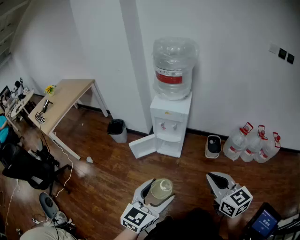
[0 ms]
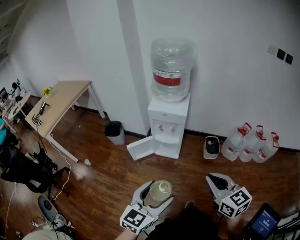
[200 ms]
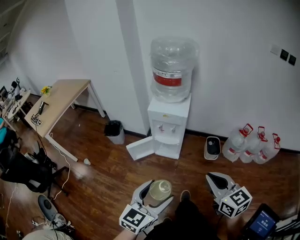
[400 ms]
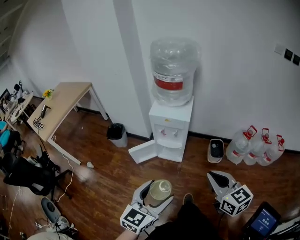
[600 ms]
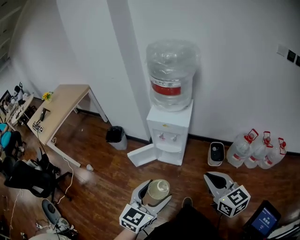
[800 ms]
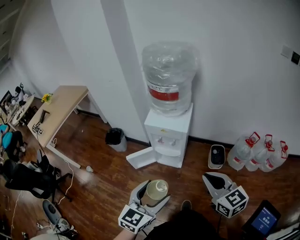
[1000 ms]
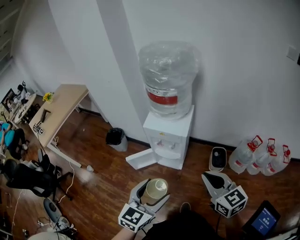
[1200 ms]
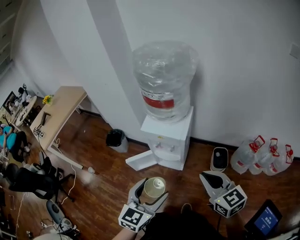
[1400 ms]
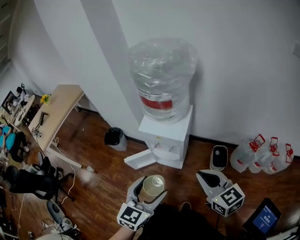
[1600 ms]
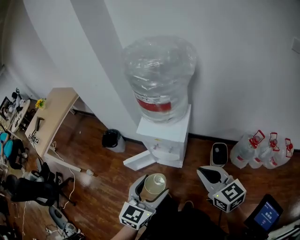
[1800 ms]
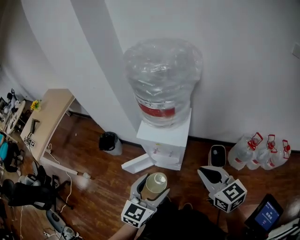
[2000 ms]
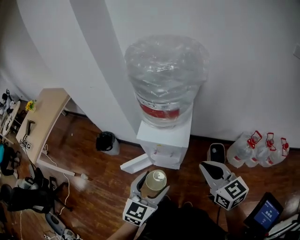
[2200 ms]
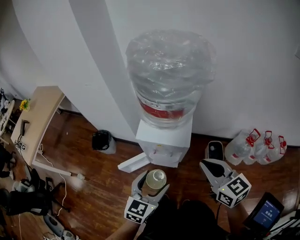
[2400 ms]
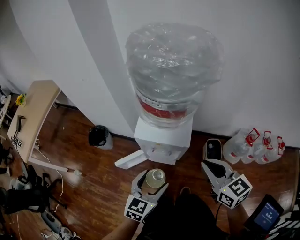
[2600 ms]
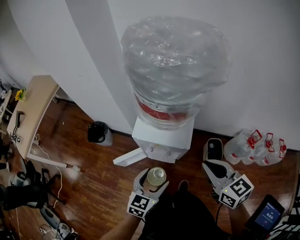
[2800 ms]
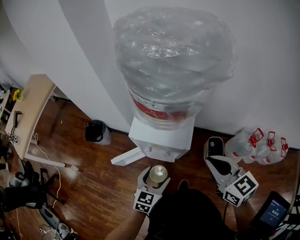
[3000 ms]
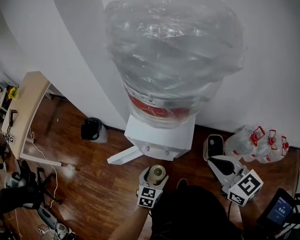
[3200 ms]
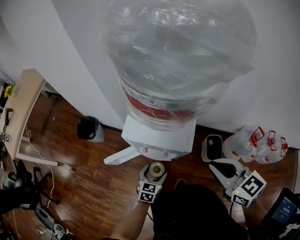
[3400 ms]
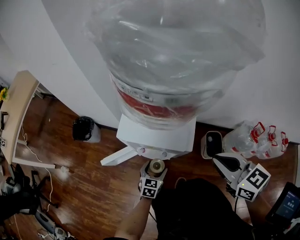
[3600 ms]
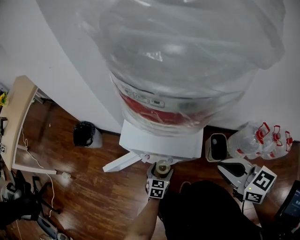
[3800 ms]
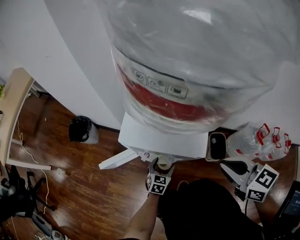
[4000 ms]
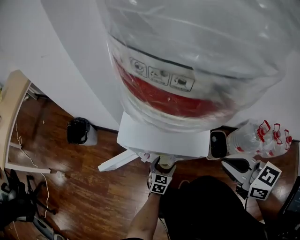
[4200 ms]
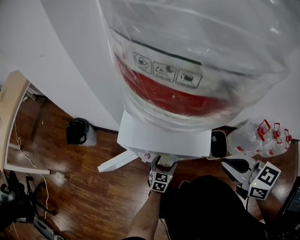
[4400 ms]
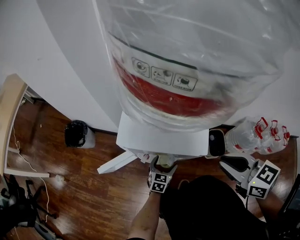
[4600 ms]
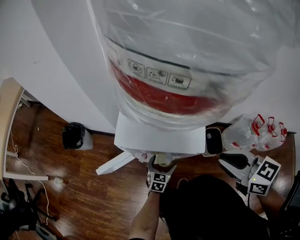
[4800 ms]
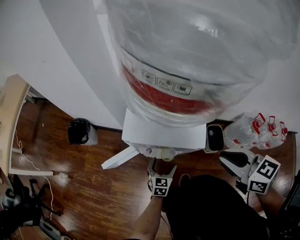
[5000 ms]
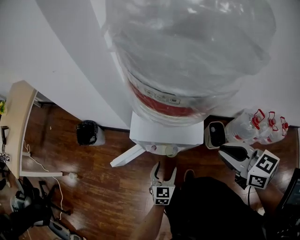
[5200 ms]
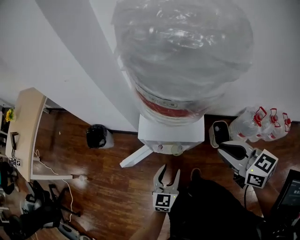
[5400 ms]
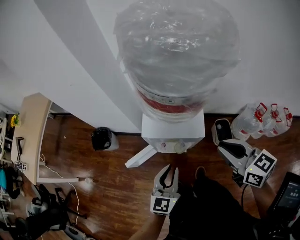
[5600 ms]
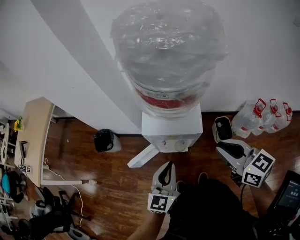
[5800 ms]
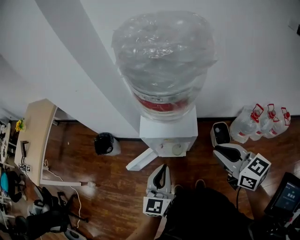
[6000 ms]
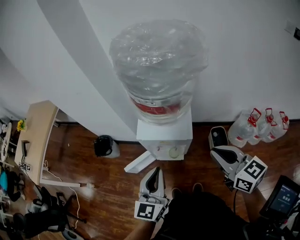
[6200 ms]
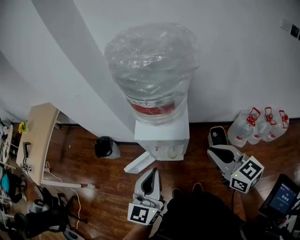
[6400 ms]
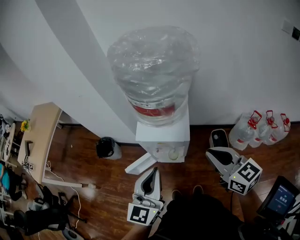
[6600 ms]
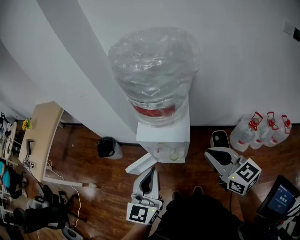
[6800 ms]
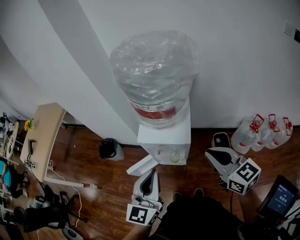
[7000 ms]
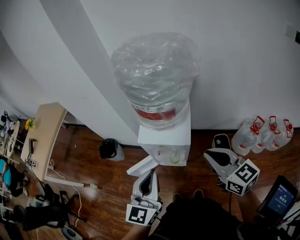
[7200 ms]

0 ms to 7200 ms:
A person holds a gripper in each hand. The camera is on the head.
0 ms to 1400 ms: Both grippers travel together forward, about 25 cm.
1400 ms to 2800 ms: The left gripper shifts some 25 cm forward and downward, while the right gripper goes about 15 cm forward.
2800 ms to 4400 ms: The left gripper travels downward by some 40 cm. The right gripper travels downward and forward by roughly 15 cm.
4400 ms to 5800 ms: The right gripper heads upward and backward, covering roughly 20 cm; the left gripper shifts some 40 cm upward, turns by roughly 30 degrees, and closes up.
5800 ms to 7200 ms: The left gripper goes about 15 cm upward.

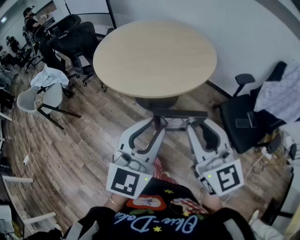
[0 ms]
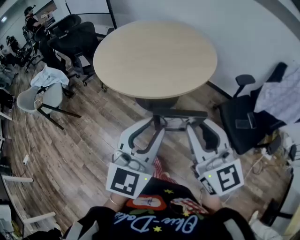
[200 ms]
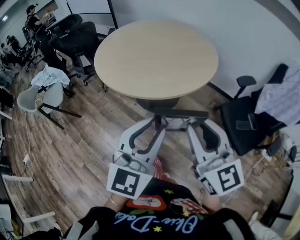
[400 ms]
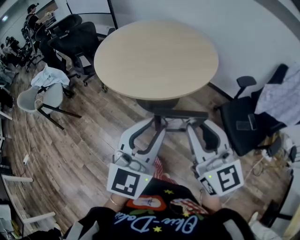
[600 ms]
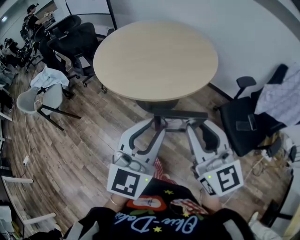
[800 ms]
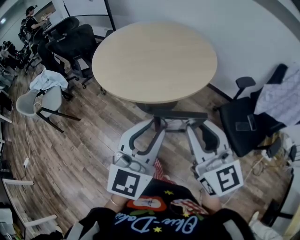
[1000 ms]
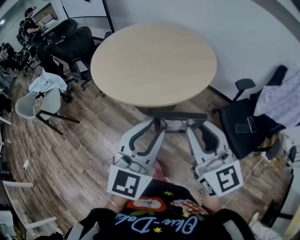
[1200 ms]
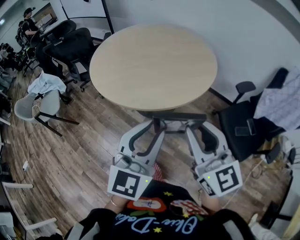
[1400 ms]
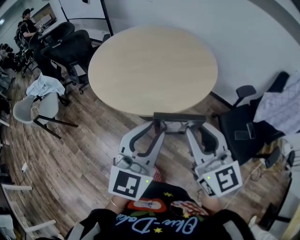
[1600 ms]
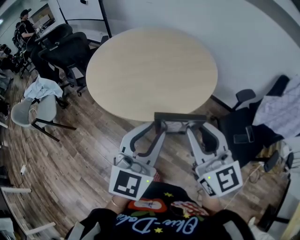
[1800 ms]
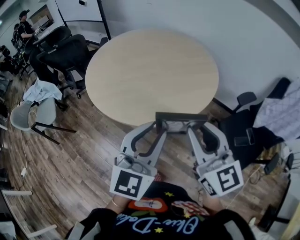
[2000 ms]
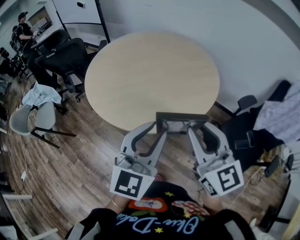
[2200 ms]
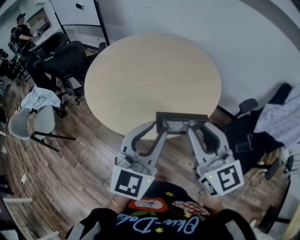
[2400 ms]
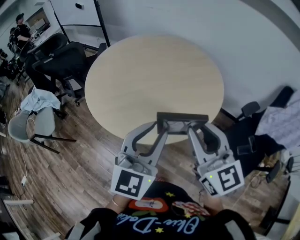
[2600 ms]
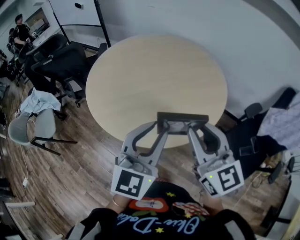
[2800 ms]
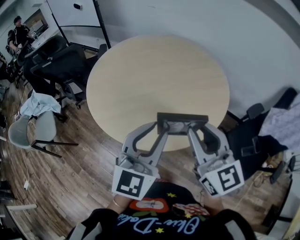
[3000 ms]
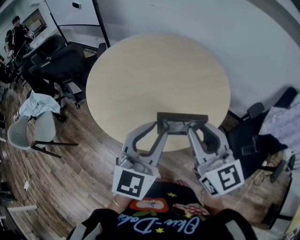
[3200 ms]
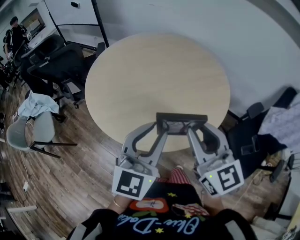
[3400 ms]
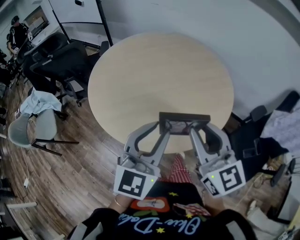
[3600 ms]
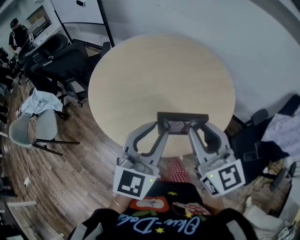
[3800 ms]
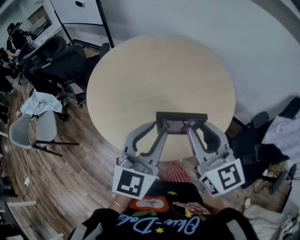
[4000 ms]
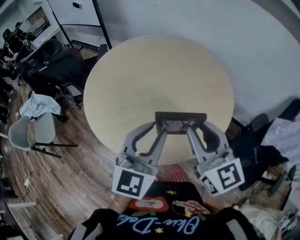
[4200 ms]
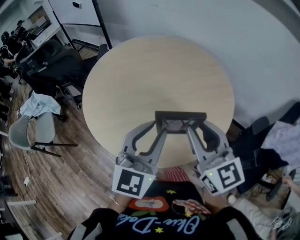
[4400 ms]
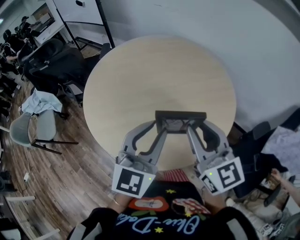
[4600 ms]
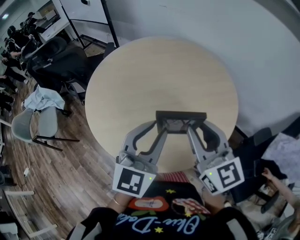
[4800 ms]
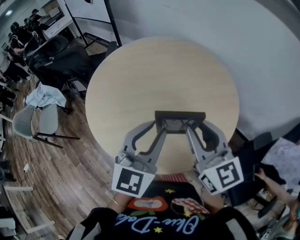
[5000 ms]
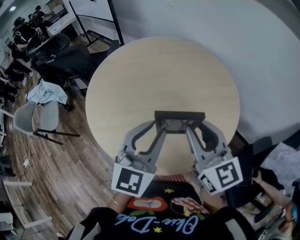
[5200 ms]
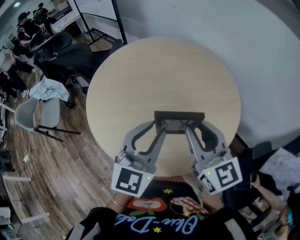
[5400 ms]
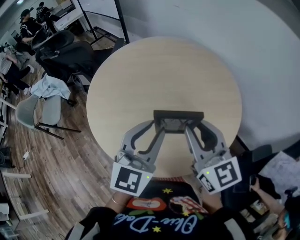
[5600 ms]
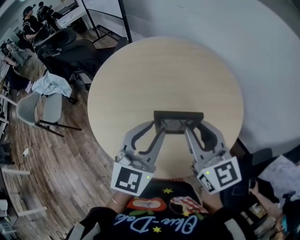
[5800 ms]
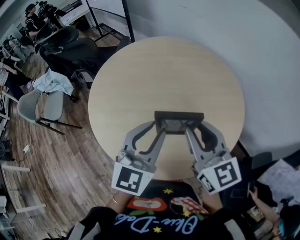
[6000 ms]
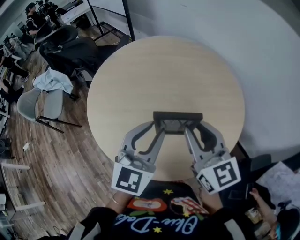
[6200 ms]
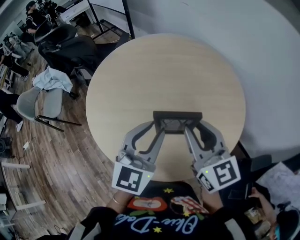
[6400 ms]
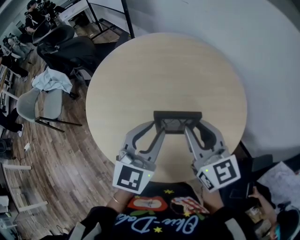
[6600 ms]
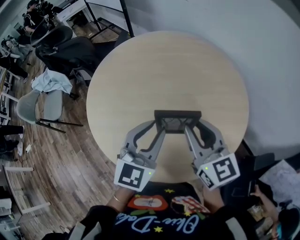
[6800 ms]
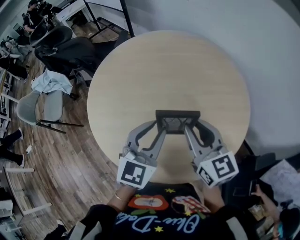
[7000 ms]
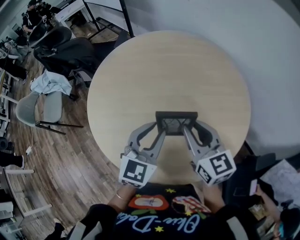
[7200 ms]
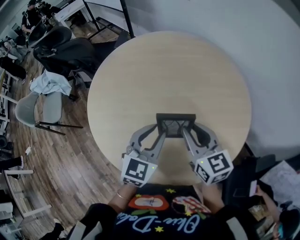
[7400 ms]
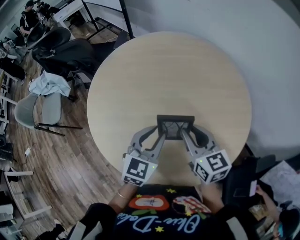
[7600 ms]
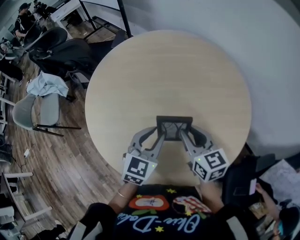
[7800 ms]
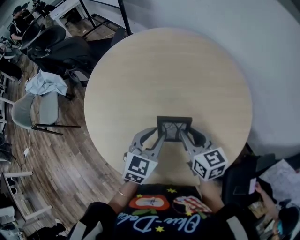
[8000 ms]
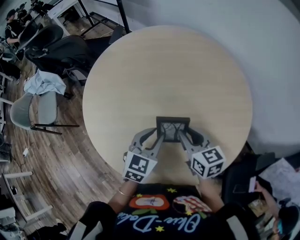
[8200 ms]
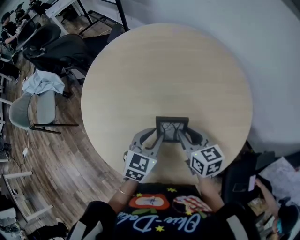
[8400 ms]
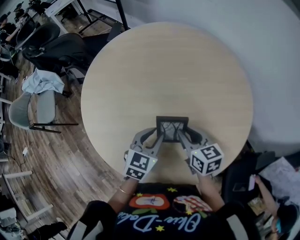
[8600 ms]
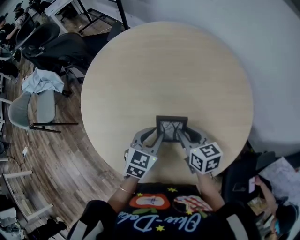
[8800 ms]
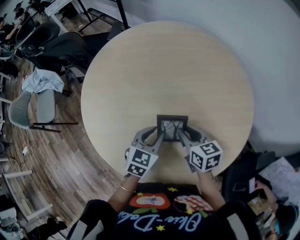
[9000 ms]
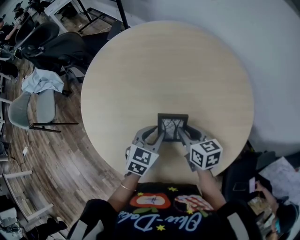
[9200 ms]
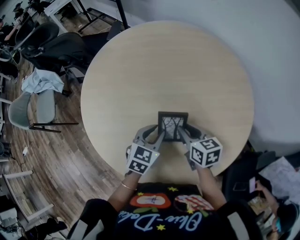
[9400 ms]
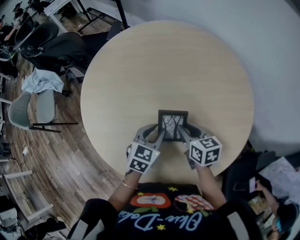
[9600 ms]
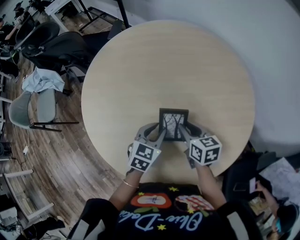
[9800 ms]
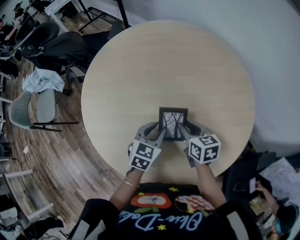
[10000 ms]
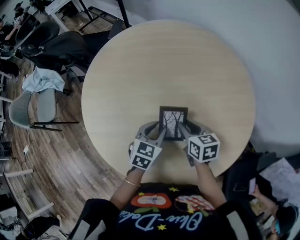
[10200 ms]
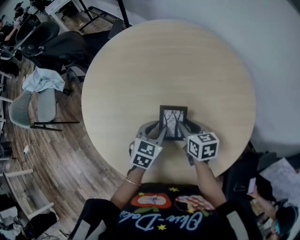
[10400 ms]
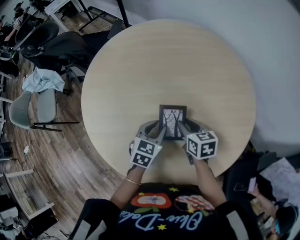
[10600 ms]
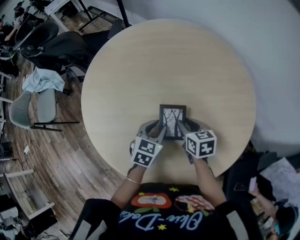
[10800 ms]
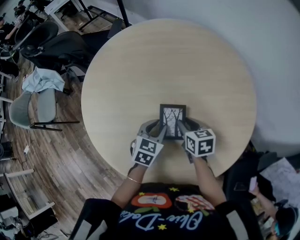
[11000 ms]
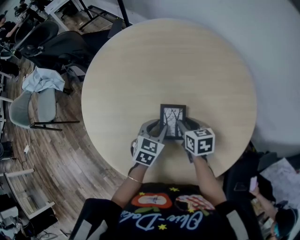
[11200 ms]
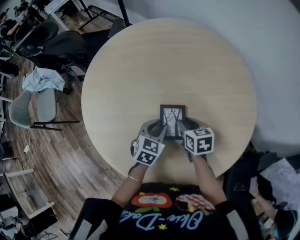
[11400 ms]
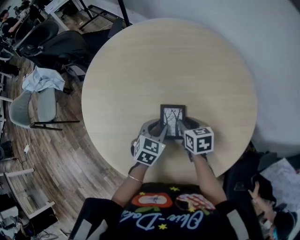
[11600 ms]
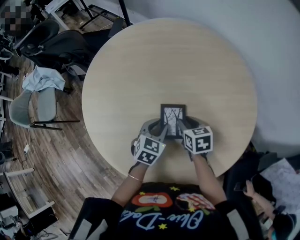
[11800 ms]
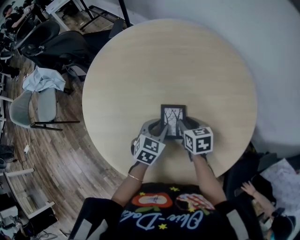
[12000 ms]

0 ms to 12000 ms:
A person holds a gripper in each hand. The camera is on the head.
0 ms to 1600 ms: The grippers both shift forward by approximately 10 cm.
1600 ms to 3000 ms: Both grippers move forward and to the left, about 20 cm.
3000 ms to 4400 ms: The grippers both shift forward by roughly 10 cm.
4400 ms to 6000 ms: Both grippers move forward, approximately 5 cm.
6000 ms to 7600 ms: The grippers both shift downward and forward by approximately 15 cm.
7600 ms to 9000 ms: The grippers both shift downward by roughly 10 cm.
9000 ms to 10400 ms: The grippers move only a little.
10400 ms to 12000 ms: There are only small adjustments of the grippers.

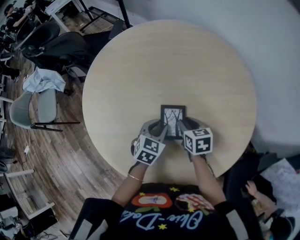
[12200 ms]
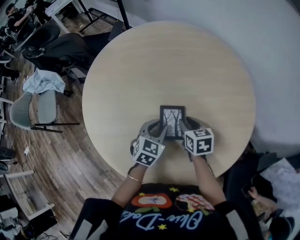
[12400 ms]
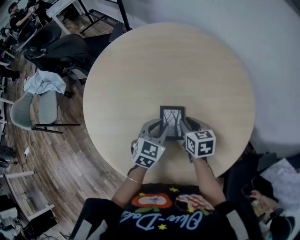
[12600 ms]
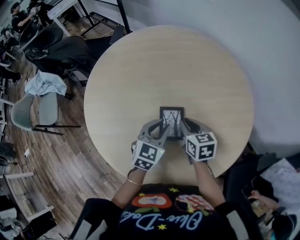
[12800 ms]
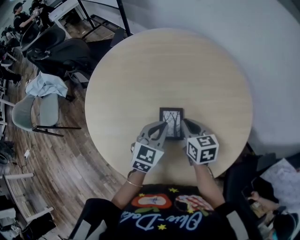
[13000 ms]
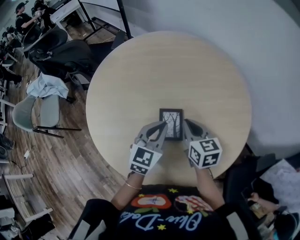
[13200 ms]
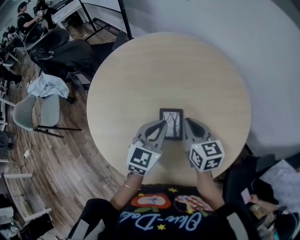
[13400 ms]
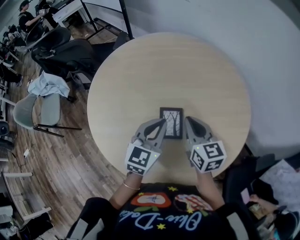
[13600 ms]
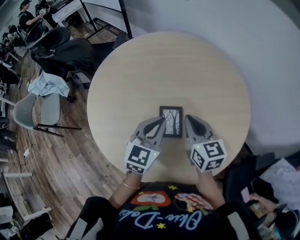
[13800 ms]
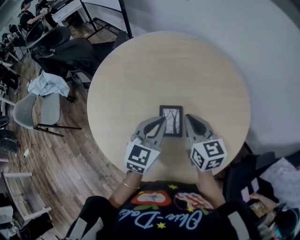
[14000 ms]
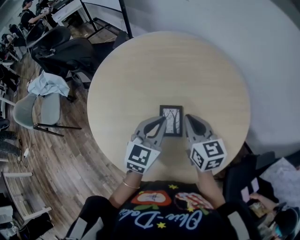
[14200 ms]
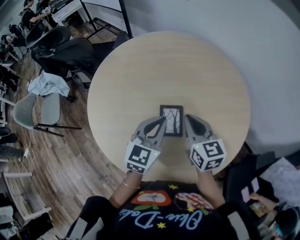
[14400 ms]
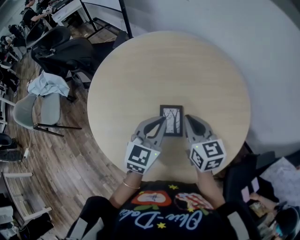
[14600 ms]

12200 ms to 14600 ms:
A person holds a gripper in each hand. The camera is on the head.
12200 ms to 13400 ms: The two grippers go about 15 cm upward. The left gripper swivels some 20 degrees, and closes its fingers. Meanwhile the right gripper rotates some 30 degrees, and closes up.
13400 ms to 14600 ms: The grippers make only small movements.

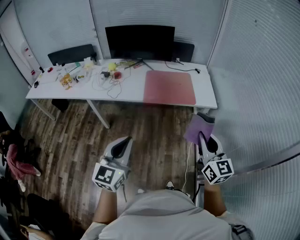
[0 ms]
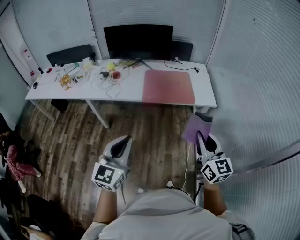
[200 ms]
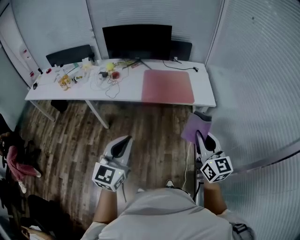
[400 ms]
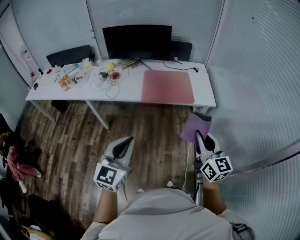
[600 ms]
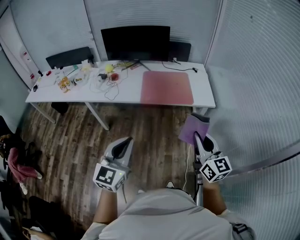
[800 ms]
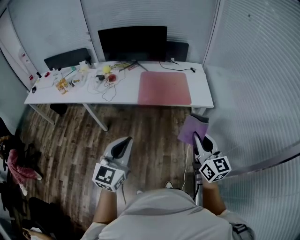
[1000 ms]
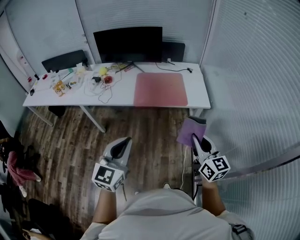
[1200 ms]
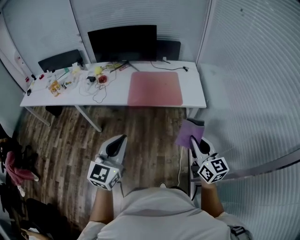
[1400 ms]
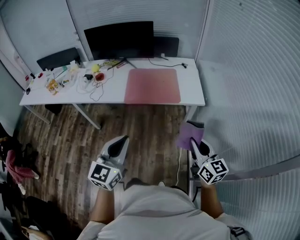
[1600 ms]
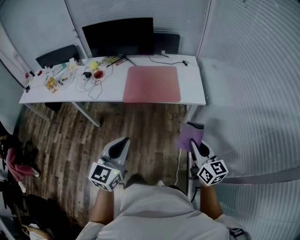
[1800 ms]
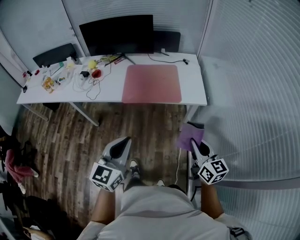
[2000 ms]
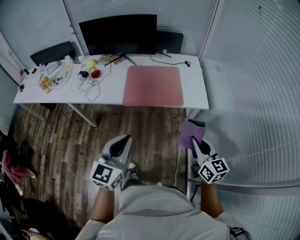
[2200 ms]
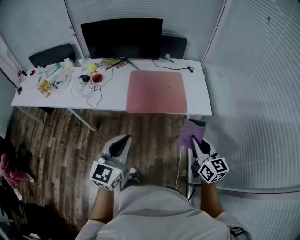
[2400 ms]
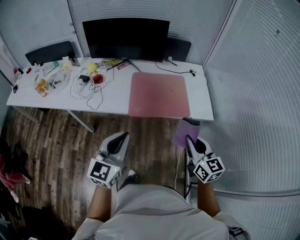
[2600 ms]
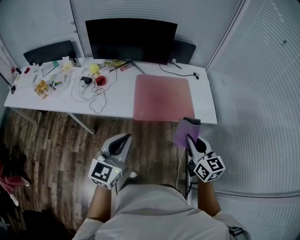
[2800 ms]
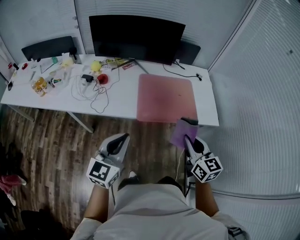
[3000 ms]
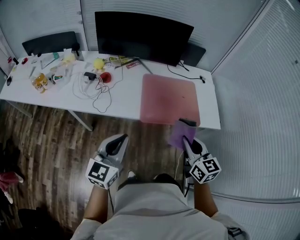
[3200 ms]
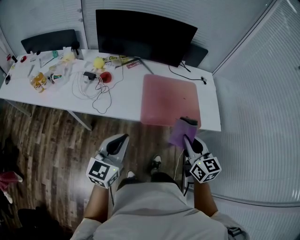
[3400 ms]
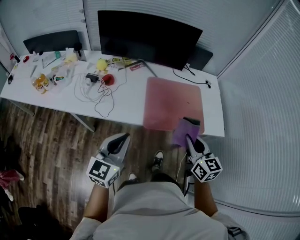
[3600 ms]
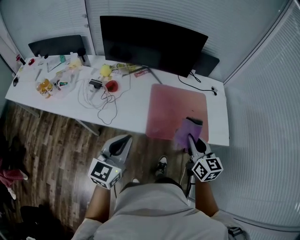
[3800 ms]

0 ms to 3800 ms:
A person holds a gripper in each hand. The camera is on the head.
0 ms to 1200 ms: Both grippers travel together to the right, roughly 5 cm.
1200 ms to 2600 ms: The two grippers go about 20 cm forward.
2600 ms to 3800 ms: The two grippers go approximately 20 cm forward and to the left.
